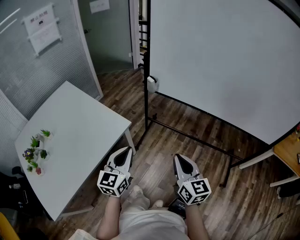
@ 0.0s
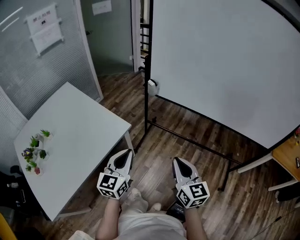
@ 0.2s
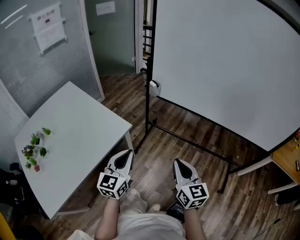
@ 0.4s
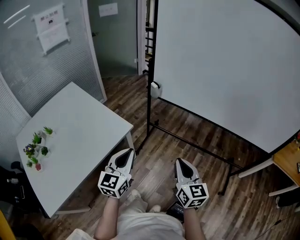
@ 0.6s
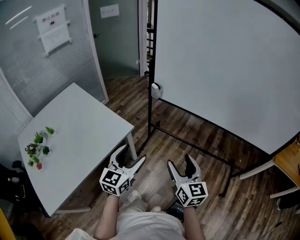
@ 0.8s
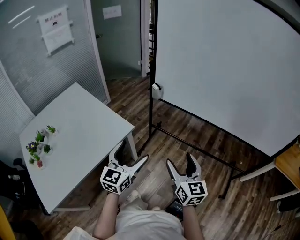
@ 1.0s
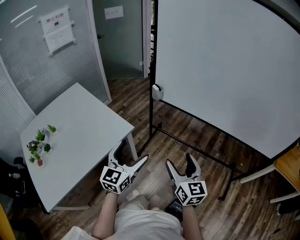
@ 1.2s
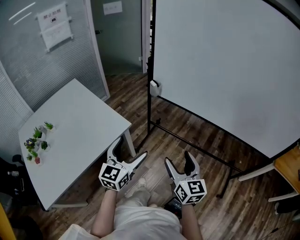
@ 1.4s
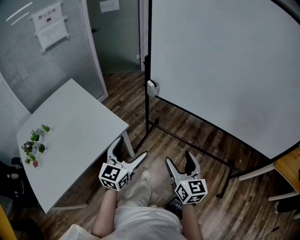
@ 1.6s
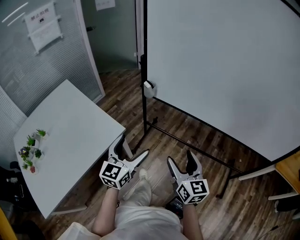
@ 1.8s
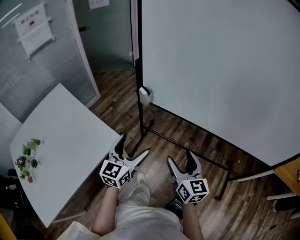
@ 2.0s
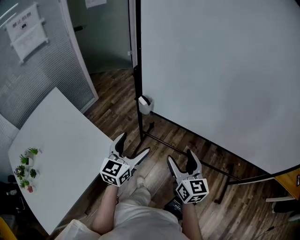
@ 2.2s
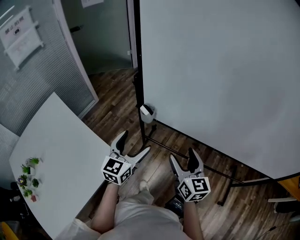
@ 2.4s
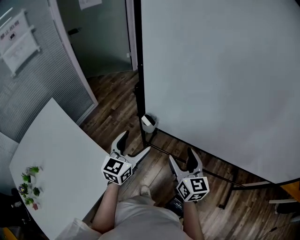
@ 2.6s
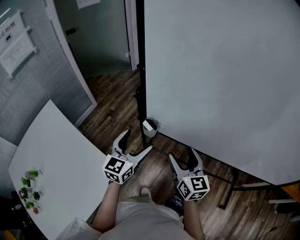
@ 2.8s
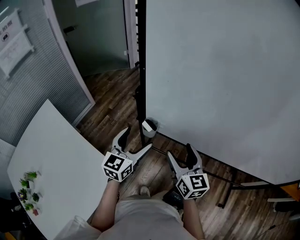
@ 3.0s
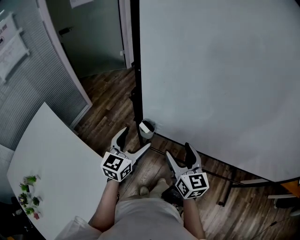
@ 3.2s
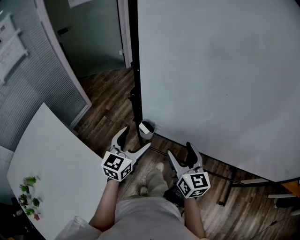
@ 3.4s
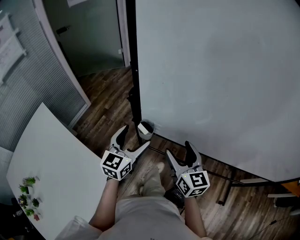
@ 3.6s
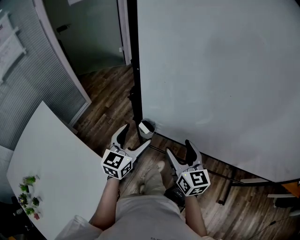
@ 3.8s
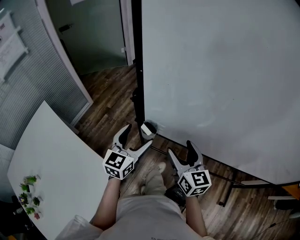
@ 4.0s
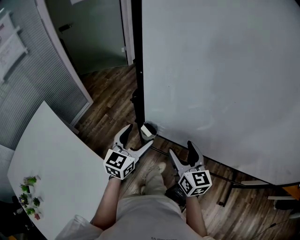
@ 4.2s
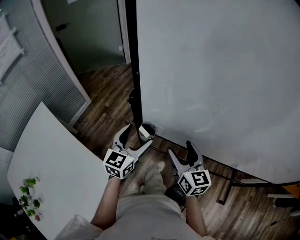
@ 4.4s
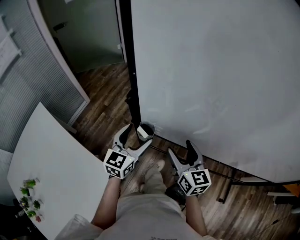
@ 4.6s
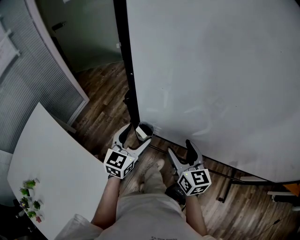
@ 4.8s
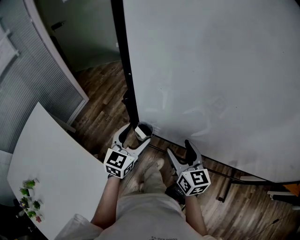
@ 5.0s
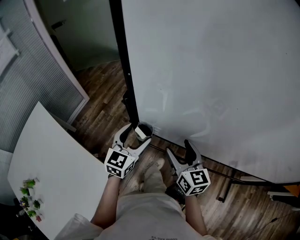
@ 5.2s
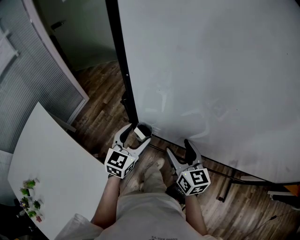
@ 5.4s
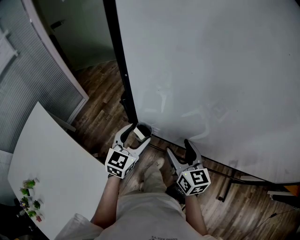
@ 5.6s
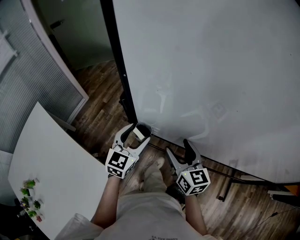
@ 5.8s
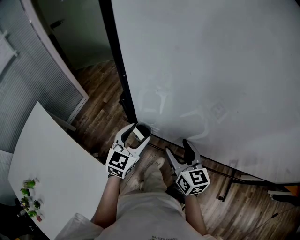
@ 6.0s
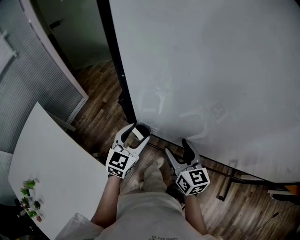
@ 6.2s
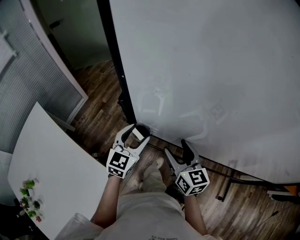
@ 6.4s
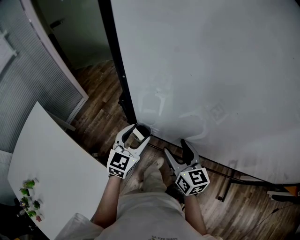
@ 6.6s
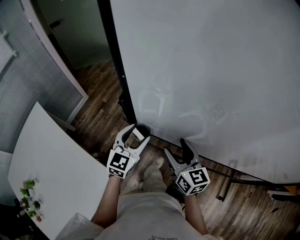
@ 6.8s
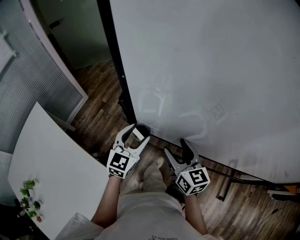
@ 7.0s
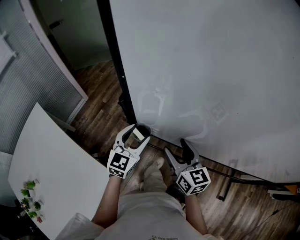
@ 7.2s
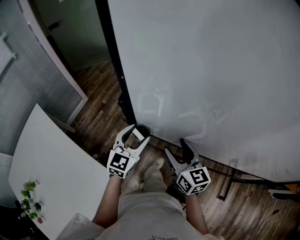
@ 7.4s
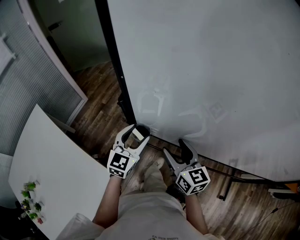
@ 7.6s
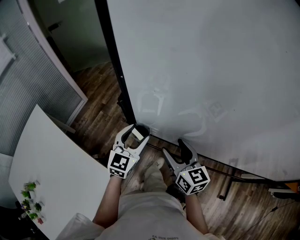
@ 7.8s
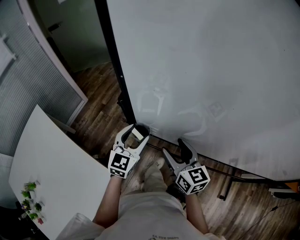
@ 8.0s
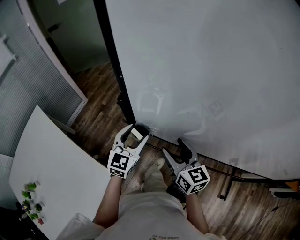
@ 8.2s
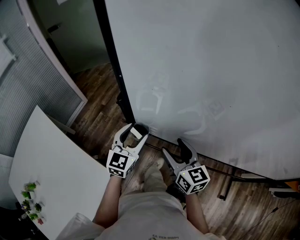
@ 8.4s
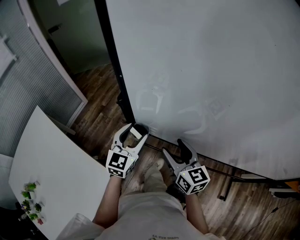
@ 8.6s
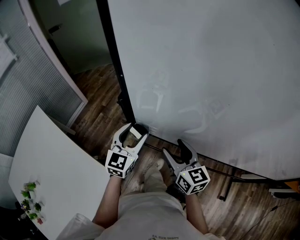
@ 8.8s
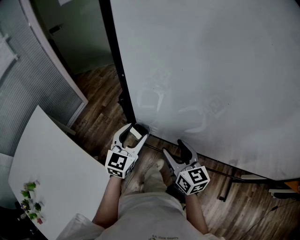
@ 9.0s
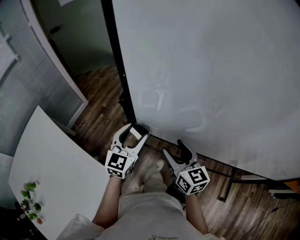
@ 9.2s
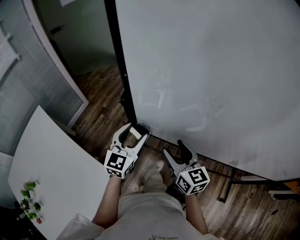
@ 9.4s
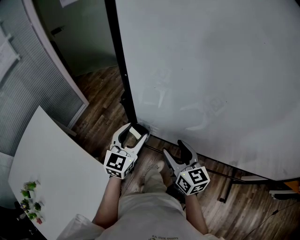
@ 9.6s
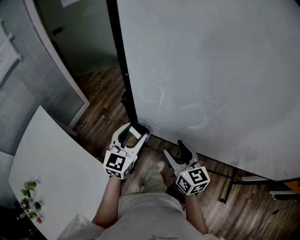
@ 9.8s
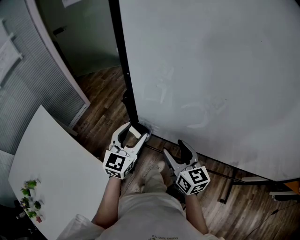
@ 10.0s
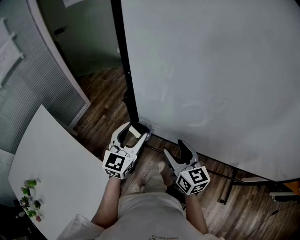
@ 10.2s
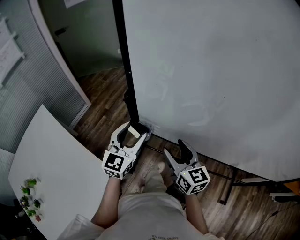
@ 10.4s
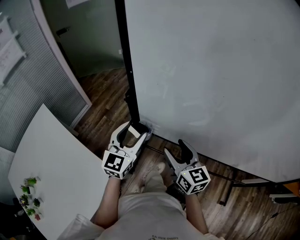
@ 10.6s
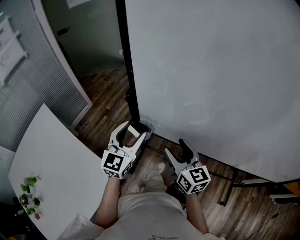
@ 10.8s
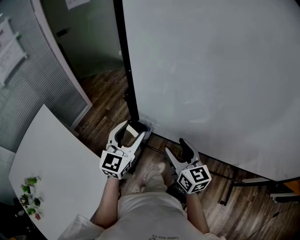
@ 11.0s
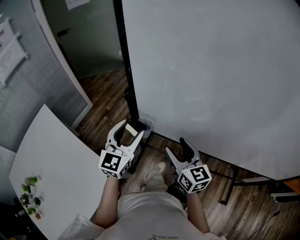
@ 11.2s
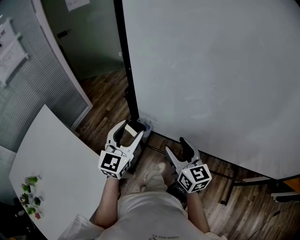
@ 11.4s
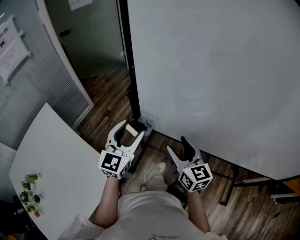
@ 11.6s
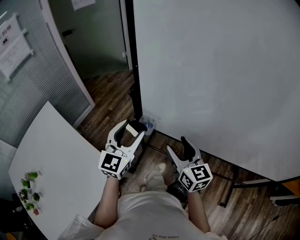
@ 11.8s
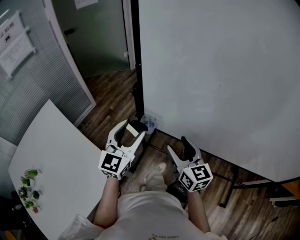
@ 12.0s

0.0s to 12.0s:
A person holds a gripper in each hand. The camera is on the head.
0.0s to 1.6s: The left gripper goes about 5 cm to the right, and opens its fingers; the right gripper ends up some 5 cm from where it was, and opens.
1.6s to 3.0s: The grippers both shift forward by approximately 40 cm.
3.0s to 4.4s: The right gripper moves roughly 5 cm. The left gripper is displaced forward by some 5 cm.
4.4s to 6.0s: There are only small adjustments of the grippers.
6.0s to 7.6s: Both grippers stay put.
7.6s to 9.0s: The grippers stay close to where they were, moving slightly.
9.0s to 10.4s: The left gripper changes place by approximately 5 cm.
10.4s to 12.0s: The left gripper moves backward, roughly 5 cm.

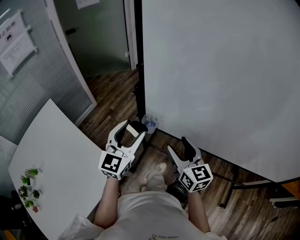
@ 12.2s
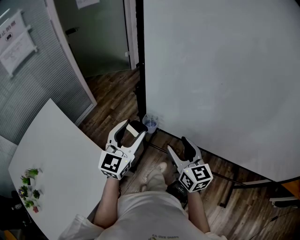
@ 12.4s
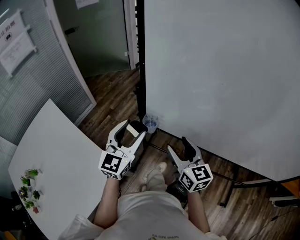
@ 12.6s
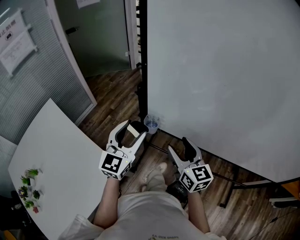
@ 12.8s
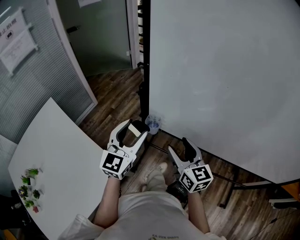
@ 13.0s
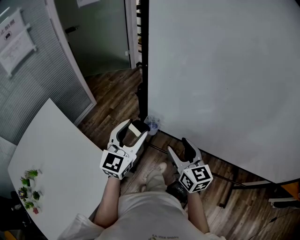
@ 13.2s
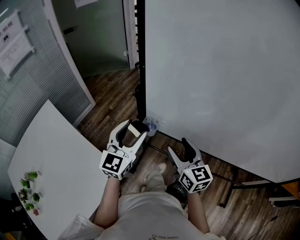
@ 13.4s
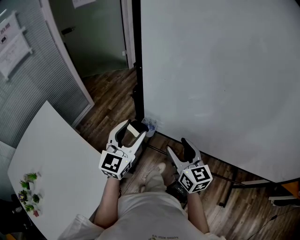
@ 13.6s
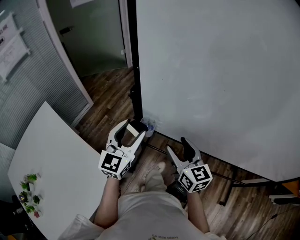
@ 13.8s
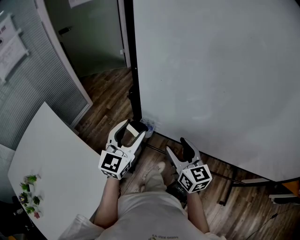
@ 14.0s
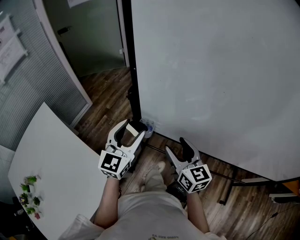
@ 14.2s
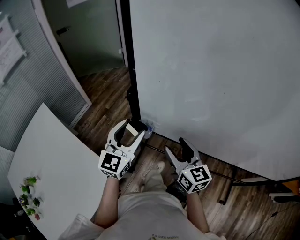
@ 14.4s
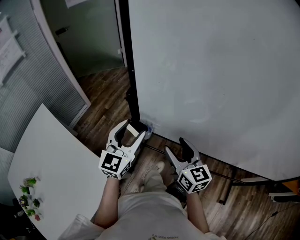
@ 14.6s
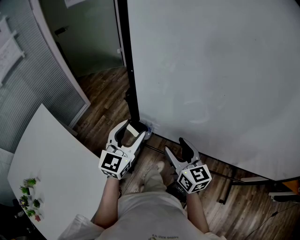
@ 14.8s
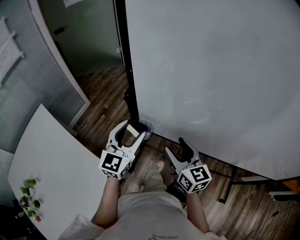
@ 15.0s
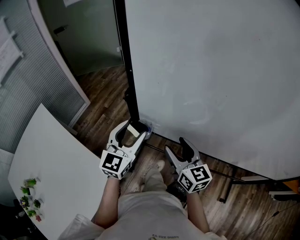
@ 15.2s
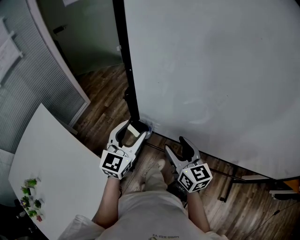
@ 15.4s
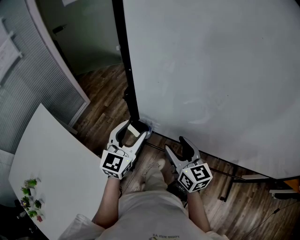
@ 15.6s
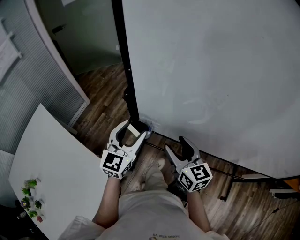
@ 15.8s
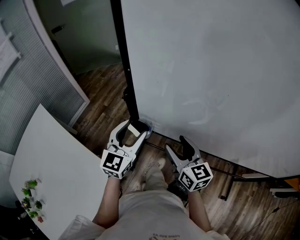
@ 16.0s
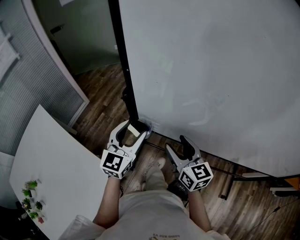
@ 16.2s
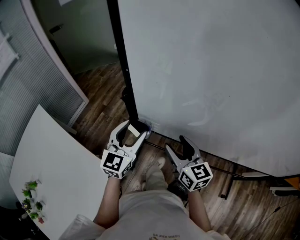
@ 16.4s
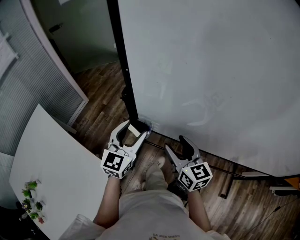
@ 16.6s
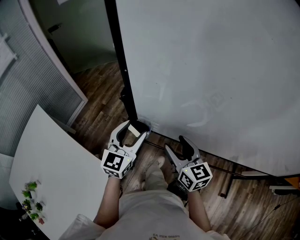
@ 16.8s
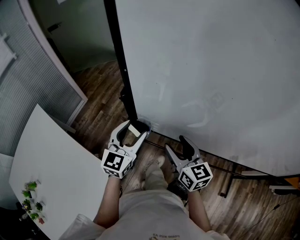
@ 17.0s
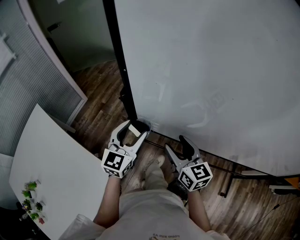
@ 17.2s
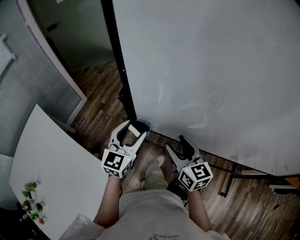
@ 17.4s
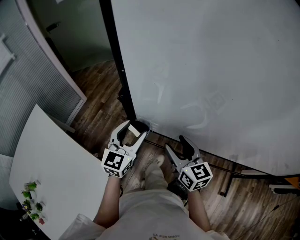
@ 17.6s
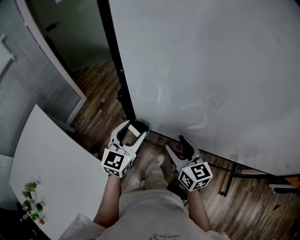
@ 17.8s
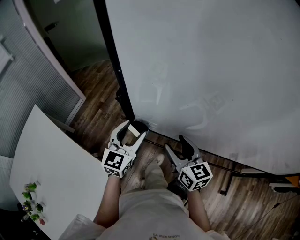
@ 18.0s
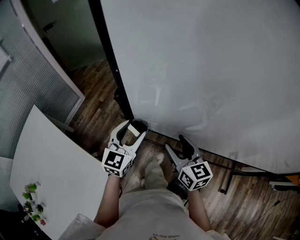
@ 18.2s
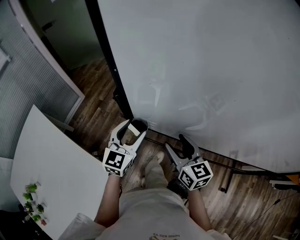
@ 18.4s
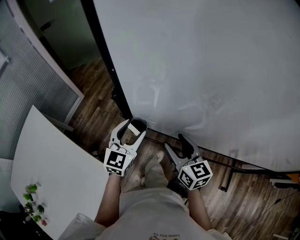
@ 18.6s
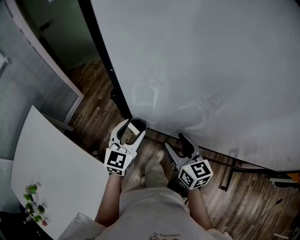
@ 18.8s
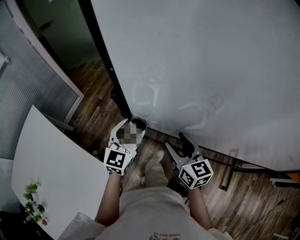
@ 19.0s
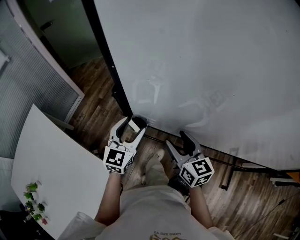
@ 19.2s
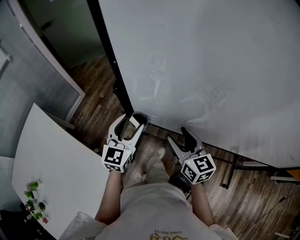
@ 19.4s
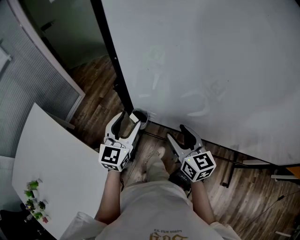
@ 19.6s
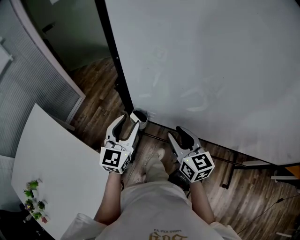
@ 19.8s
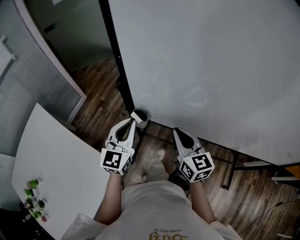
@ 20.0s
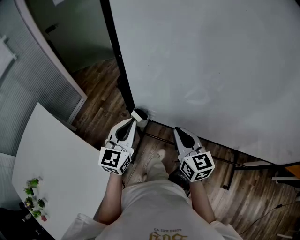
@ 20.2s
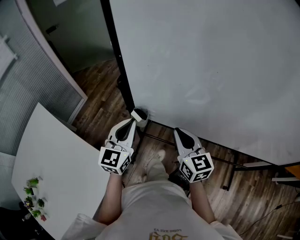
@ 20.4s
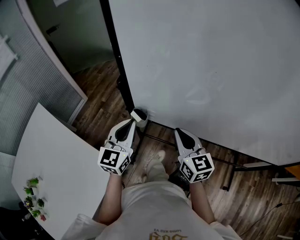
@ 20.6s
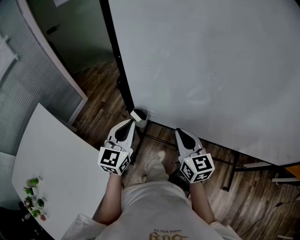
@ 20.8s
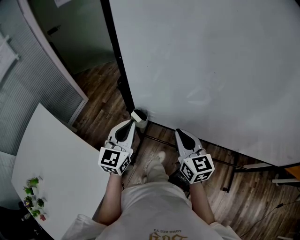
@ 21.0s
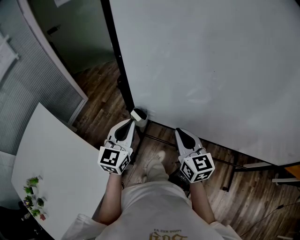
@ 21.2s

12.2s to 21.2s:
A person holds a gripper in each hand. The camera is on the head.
12.2s to 13.8s: There are only small adjustments of the grippers.
13.8s to 16.6s: The grippers make only small movements.
16.6s to 19.8s: The grippers make only small movements.
19.8s to 21.2s: The left gripper closes its fingers. Meanwhile the right gripper closes.

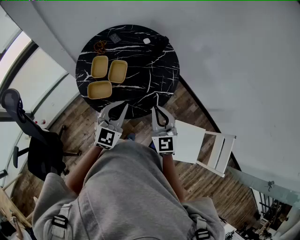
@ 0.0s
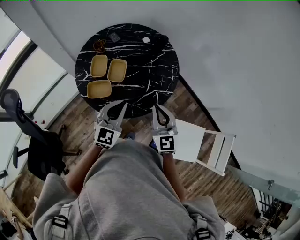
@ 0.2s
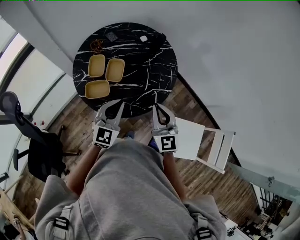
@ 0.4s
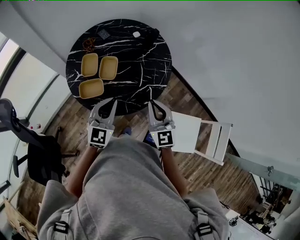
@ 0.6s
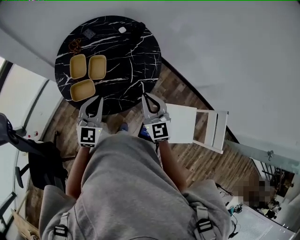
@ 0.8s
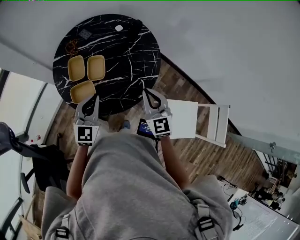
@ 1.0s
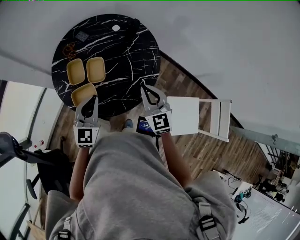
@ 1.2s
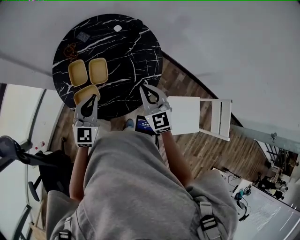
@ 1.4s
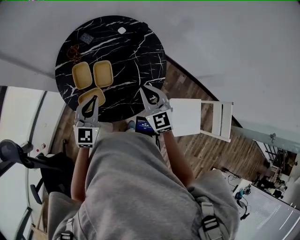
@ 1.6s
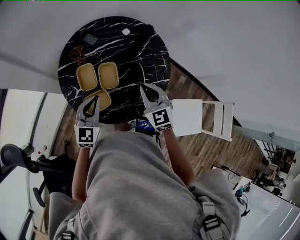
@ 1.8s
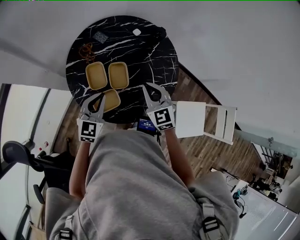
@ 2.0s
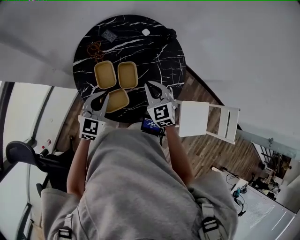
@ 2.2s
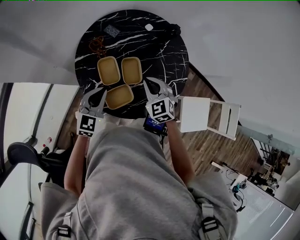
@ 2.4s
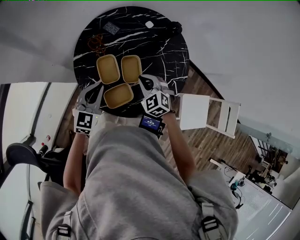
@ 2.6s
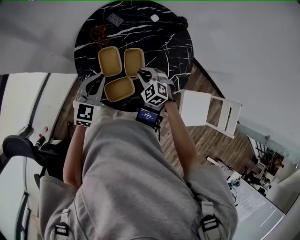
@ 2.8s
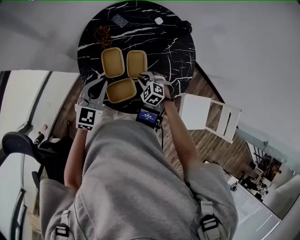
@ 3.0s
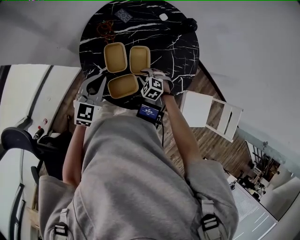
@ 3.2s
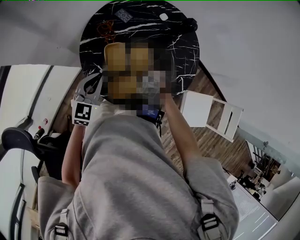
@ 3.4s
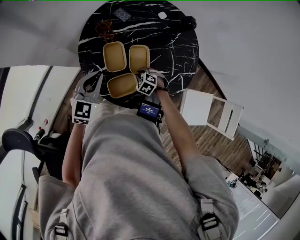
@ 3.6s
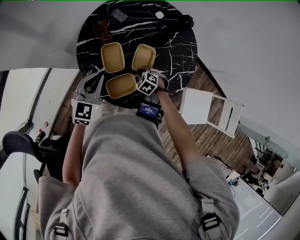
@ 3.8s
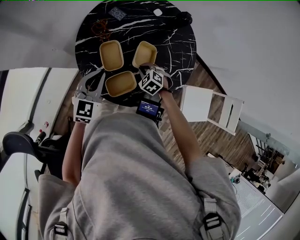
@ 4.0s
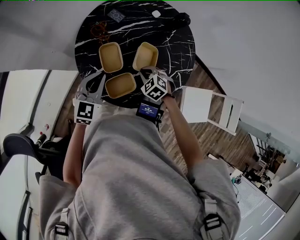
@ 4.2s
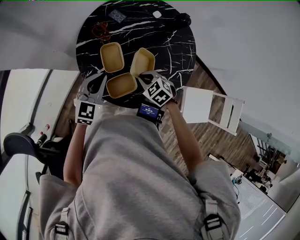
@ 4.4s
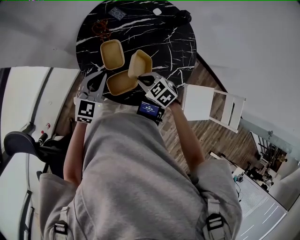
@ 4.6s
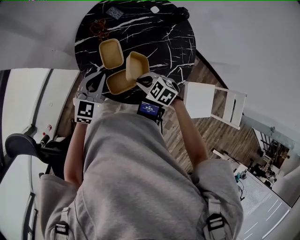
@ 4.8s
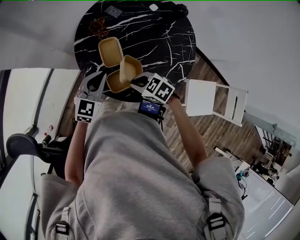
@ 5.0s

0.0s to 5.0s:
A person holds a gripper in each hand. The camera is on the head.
0.0s to 1.6s: The right gripper moves forward and to the left, about 10 cm; the left gripper heads to the left and forward, covering approximately 15 cm.
1.6s to 3.4s: The left gripper travels to the left by approximately 20 cm. Meanwhile the right gripper travels downward and to the left by roughly 35 cm, and tips its fingers downward by about 50 degrees.
3.4s to 5.0s: The right gripper moves upward, approximately 15 cm, and swivels roughly 30 degrees.
